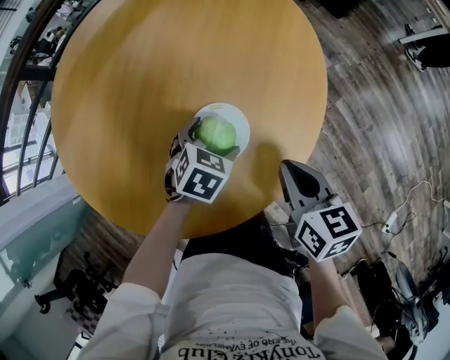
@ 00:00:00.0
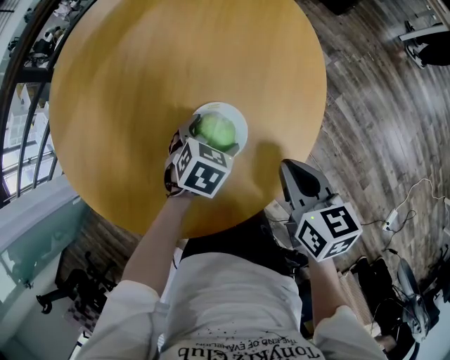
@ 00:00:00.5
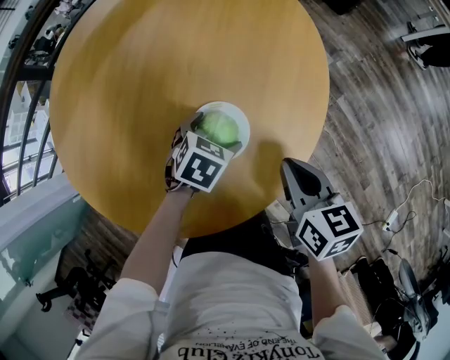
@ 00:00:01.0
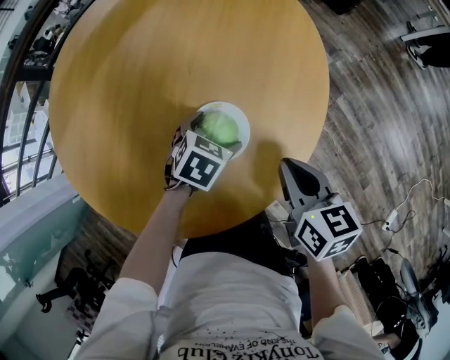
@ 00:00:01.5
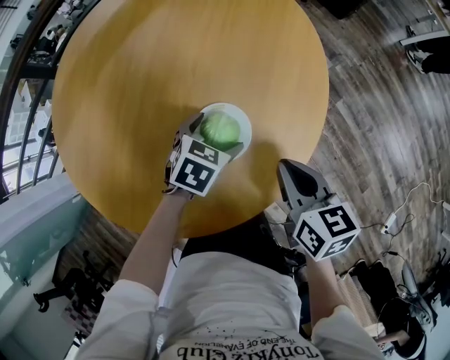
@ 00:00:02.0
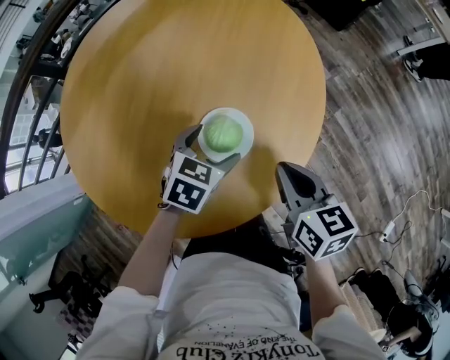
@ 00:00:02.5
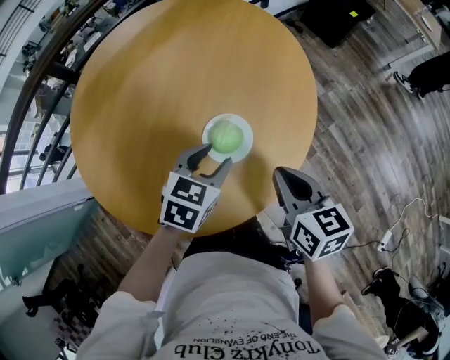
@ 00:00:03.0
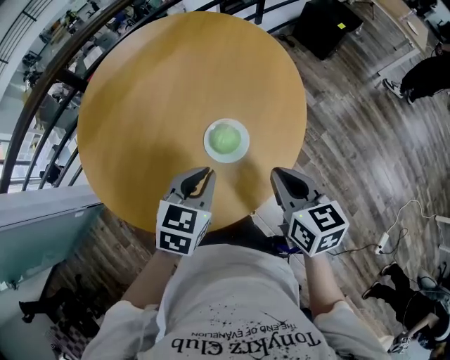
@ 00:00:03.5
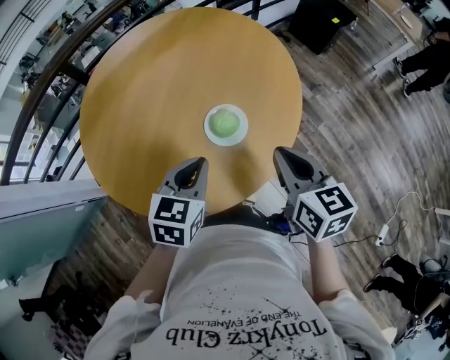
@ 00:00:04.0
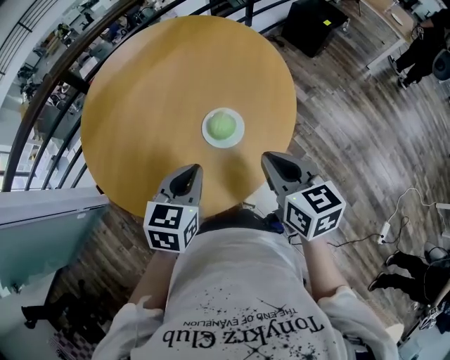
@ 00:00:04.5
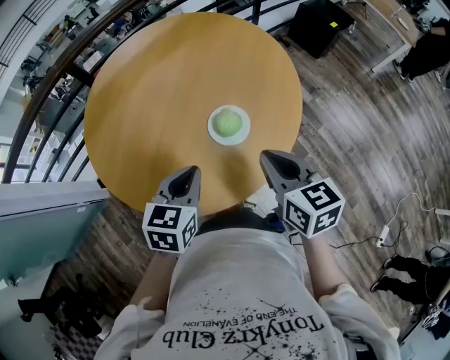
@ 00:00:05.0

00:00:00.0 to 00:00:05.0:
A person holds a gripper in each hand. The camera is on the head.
00:00:00.0 to 00:00:02.5: The left gripper goes some 5 cm upward.
00:00:02.5 to 00:00:05.0: The right gripper is displaced upward and backward by some 15 cm. The left gripper travels backward, upward and to the left by some 25 cm, turns by about 30 degrees, and closes its fingers.

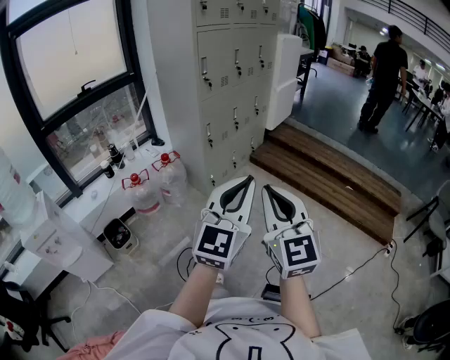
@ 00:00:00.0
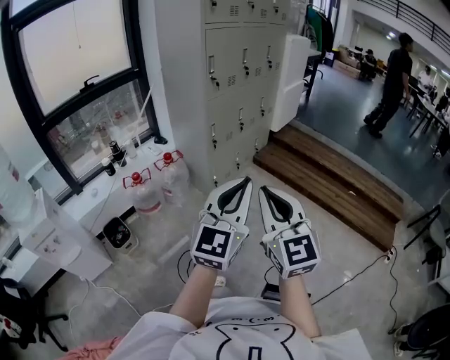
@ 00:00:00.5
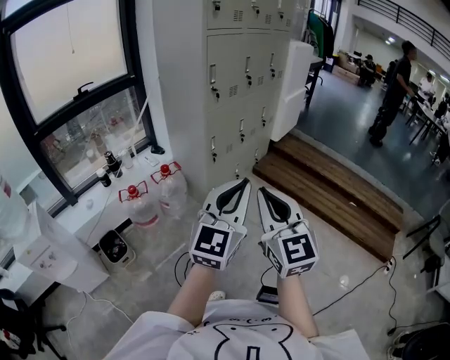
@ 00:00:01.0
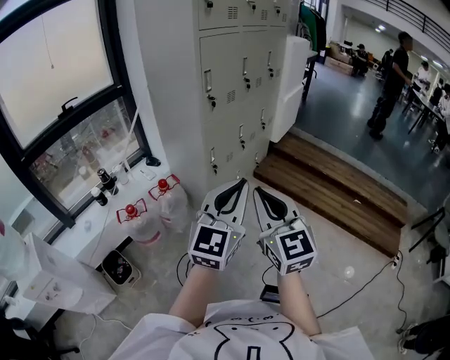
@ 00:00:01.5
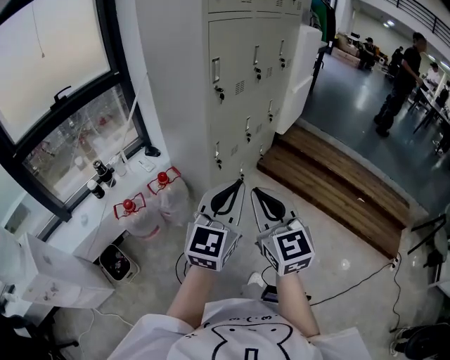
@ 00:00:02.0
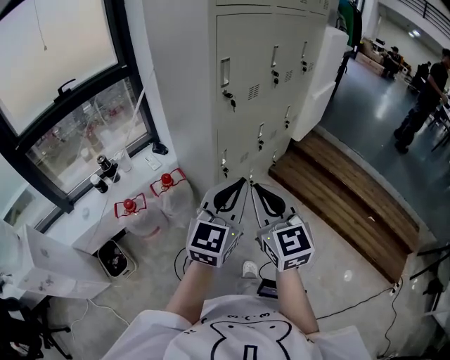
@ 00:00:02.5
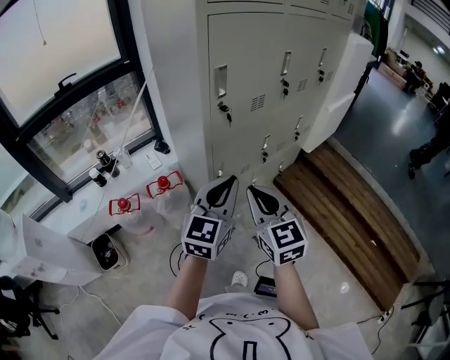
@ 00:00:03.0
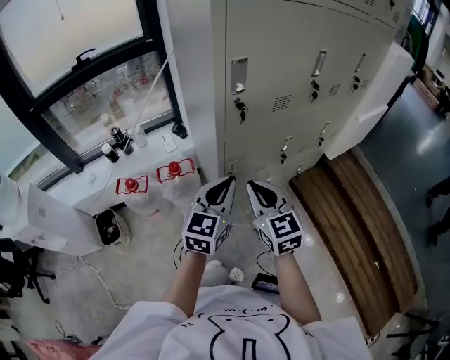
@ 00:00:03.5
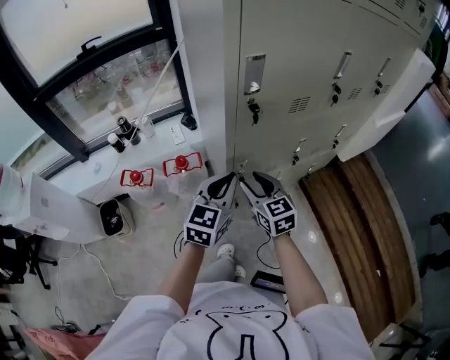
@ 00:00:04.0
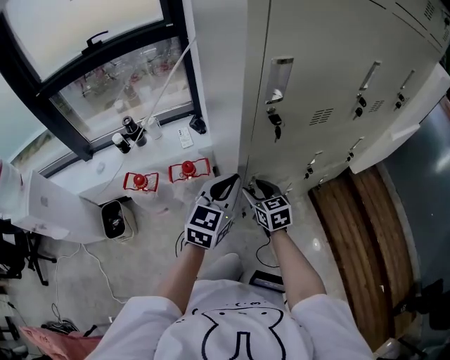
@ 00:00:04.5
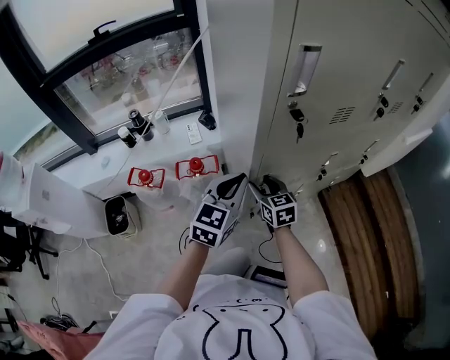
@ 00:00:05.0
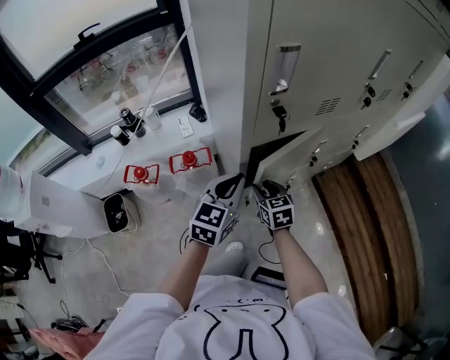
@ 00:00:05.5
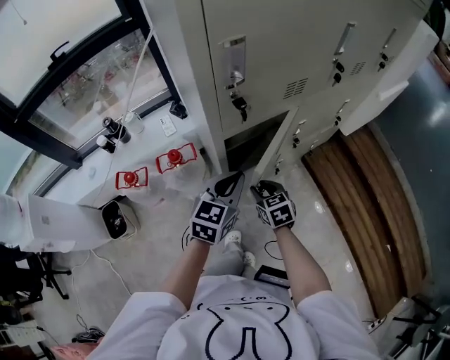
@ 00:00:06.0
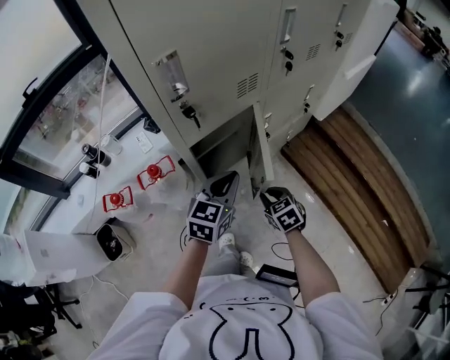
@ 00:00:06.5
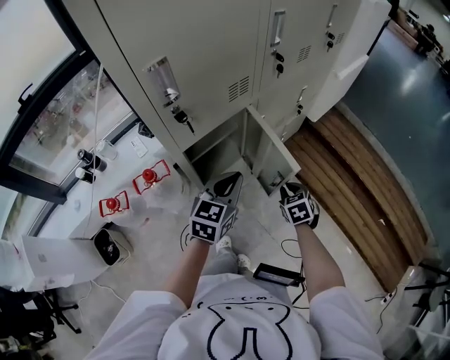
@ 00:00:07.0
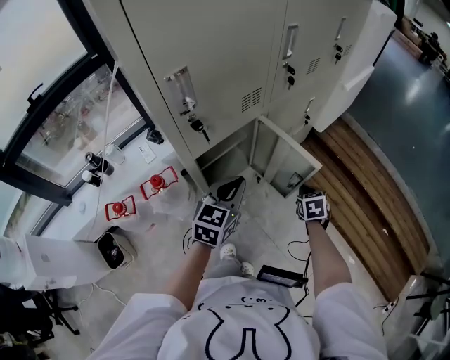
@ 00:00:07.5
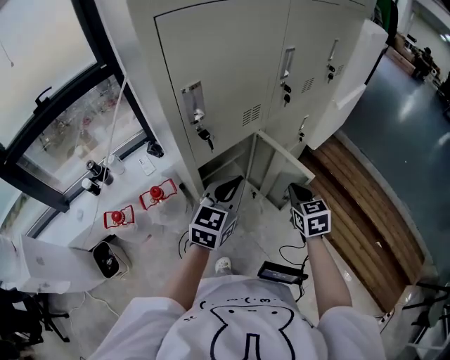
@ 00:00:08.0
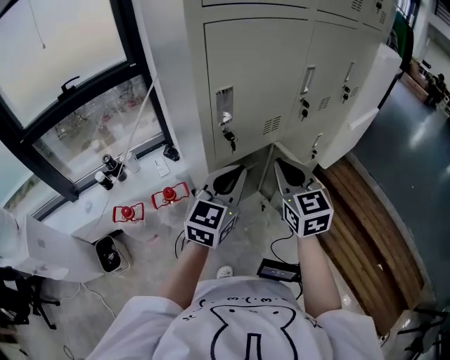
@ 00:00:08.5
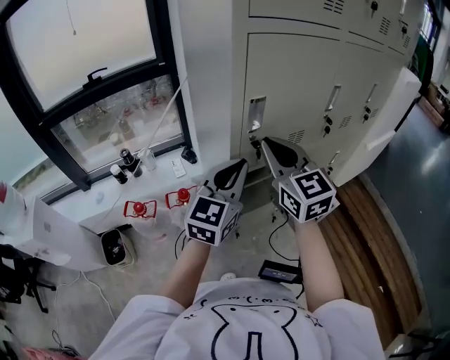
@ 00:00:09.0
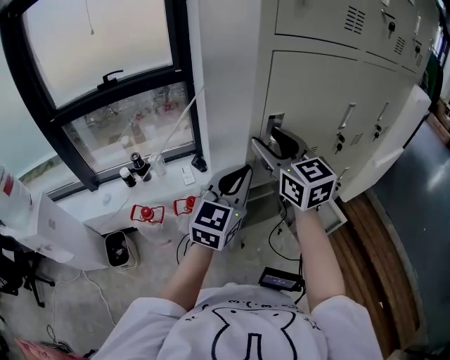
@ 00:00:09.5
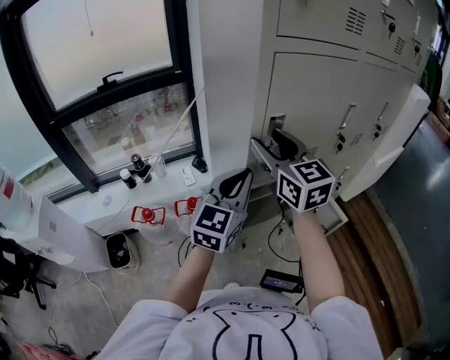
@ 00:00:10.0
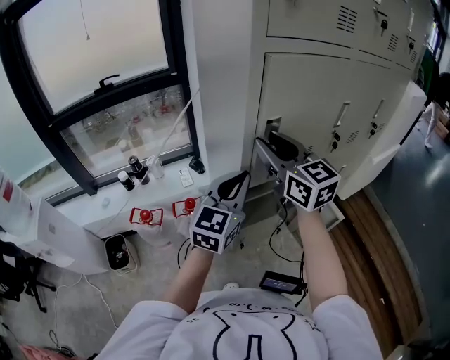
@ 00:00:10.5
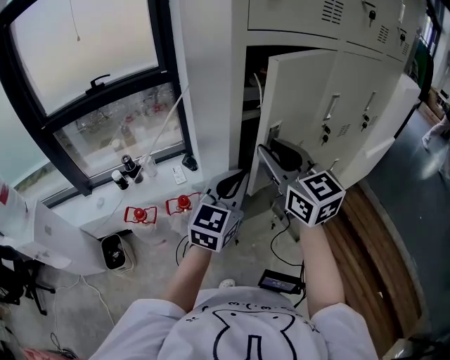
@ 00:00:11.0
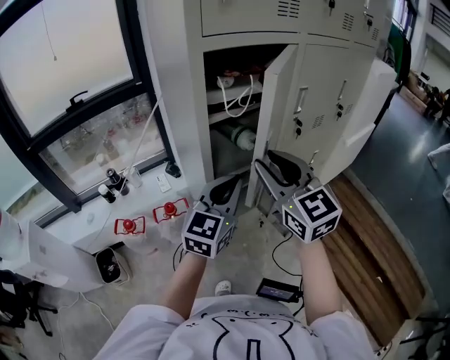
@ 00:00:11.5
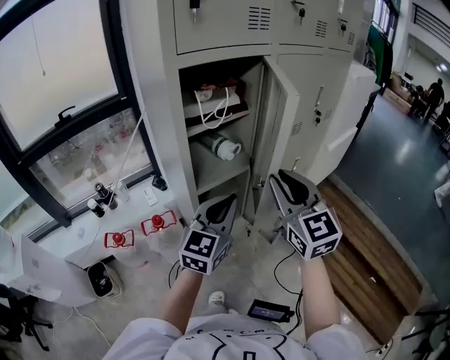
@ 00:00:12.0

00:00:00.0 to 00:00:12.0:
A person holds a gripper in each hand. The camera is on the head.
00:00:00.0 to 00:00:02.0: Both grippers move forward and to the left, approximately 35 cm.
00:00:02.0 to 00:00:04.0: The right gripper ends up about 40 cm from where it was, rotates roughly 40 degrees, and opens up. The left gripper ends up roughly 35 cm from where it was, and turns by roughly 30 degrees.
00:00:04.0 to 00:00:06.0: The left gripper heads downward, covering roughly 5 cm, while the right gripper travels downward by roughly 15 cm, and swivels some 20 degrees.
00:00:06.0 to 00:00:08.0: The right gripper moves to the right and upward, about 25 cm, turns by approximately 20 degrees, and closes its fingers. The left gripper is displaced upward and to the right by some 10 cm.
00:00:08.0 to 00:00:10.0: The left gripper is displaced to the left and upward by approximately 20 cm, and swivels roughly 20 degrees. The right gripper shifts about 40 cm to the left and upward, tips its fingers upward by some 30 degrees, and opens.
00:00:10.0 to 00:00:12.0: The right gripper moves to the right and backward, some 25 cm, changes its angle by some 20 degrees, and closes. Meanwhile the left gripper moves to the right and backward, some 15 cm.

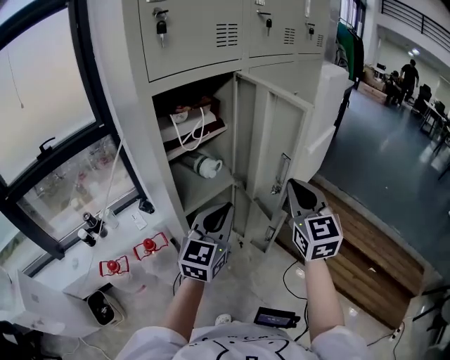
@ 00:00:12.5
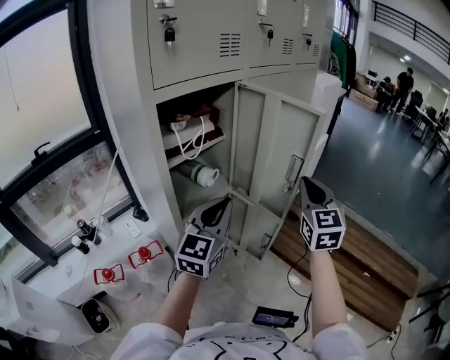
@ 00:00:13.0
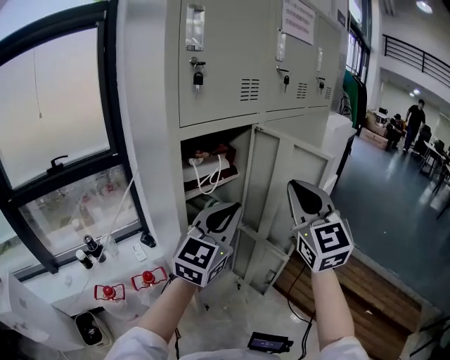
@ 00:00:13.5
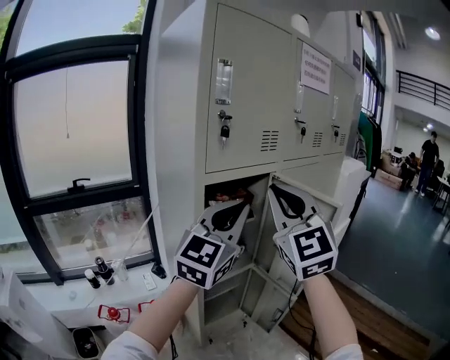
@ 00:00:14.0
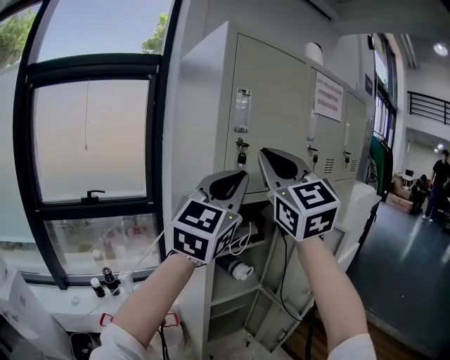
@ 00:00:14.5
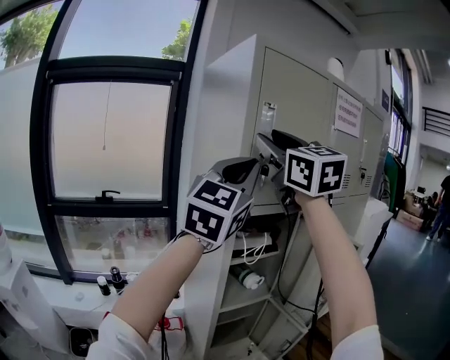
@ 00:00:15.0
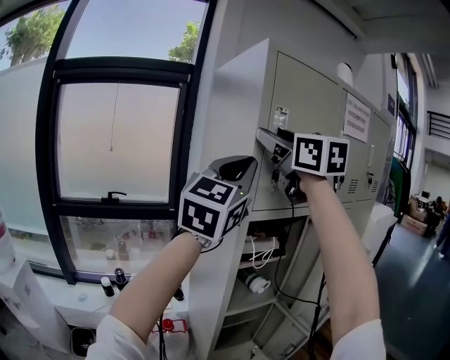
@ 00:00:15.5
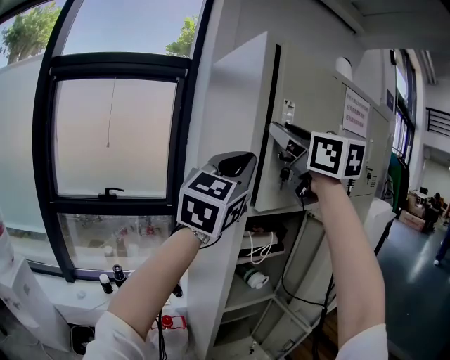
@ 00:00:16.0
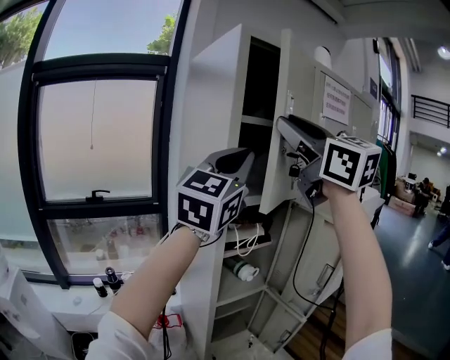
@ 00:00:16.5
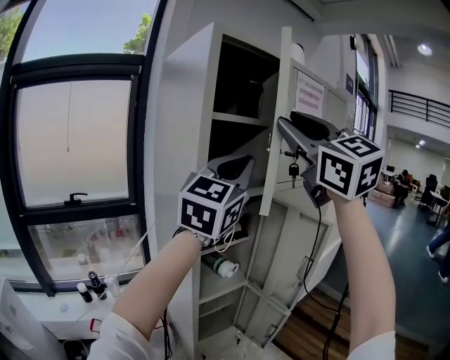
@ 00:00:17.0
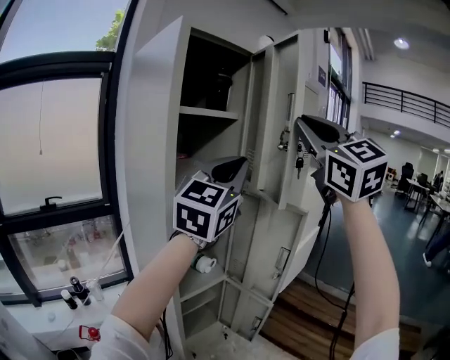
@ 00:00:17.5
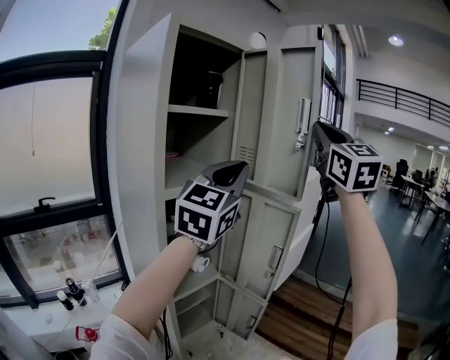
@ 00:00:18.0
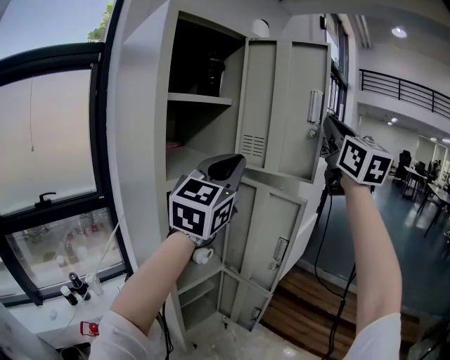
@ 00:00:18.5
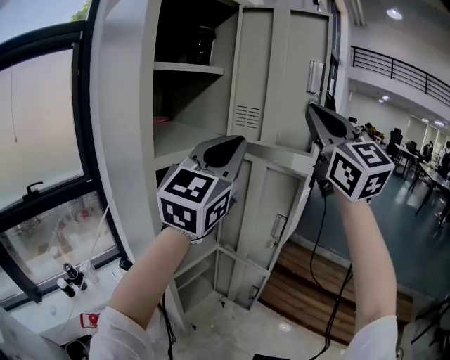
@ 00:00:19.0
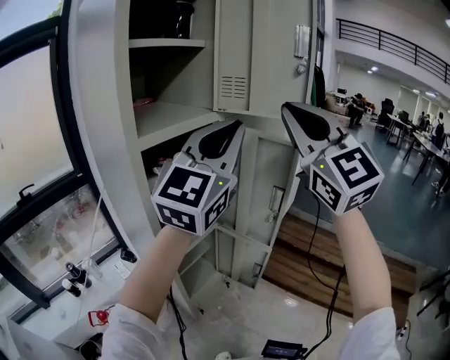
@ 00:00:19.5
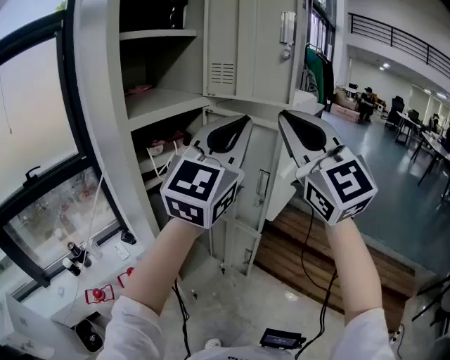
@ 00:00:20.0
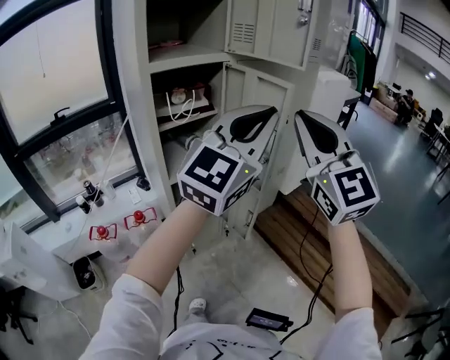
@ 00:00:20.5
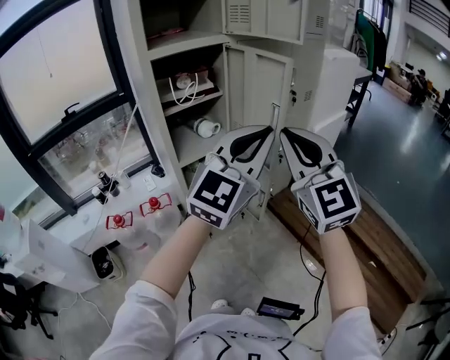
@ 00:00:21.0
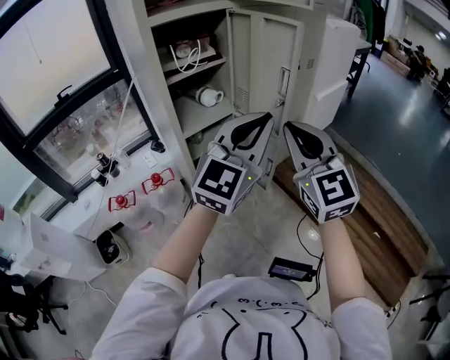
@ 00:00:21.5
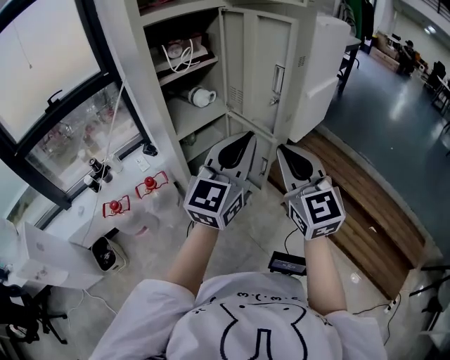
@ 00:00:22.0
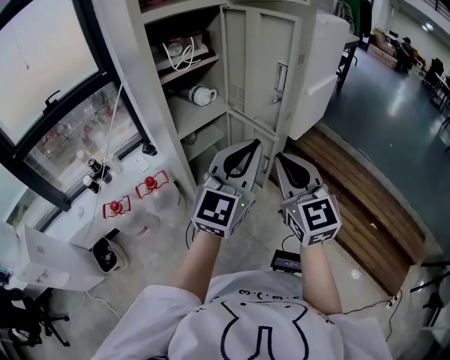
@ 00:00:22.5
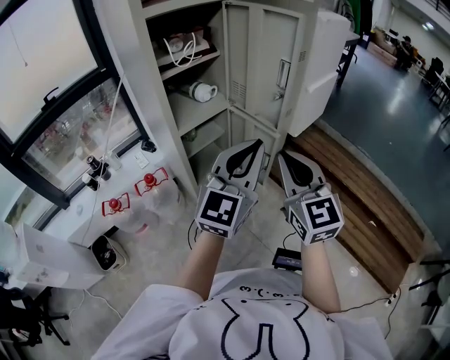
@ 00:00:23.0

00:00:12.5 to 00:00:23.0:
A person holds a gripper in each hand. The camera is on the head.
00:00:12.5 to 00:00:14.5: The right gripper shifts some 40 cm upward and to the left, and swivels approximately 40 degrees; the left gripper moves upward, some 35 cm, and rotates approximately 30 degrees.
00:00:14.5 to 00:00:16.5: The right gripper goes roughly 10 cm upward, moves some 5 cm forward and comes back, and opens up.
00:00:16.5 to 00:00:19.0: The left gripper ends up some 15 cm from where it was, and rotates roughly 20 degrees. Meanwhile the right gripper moves about 20 cm, changes its angle by some 40 degrees, and closes its fingers.
00:00:19.0 to 00:00:21.0: The left gripper travels downward, to the right and backward by approximately 25 cm. Meanwhile the right gripper heads downward and backward, covering roughly 30 cm.
00:00:21.0 to 00:00:23.0: The right gripper shifts about 15 cm downward, and swivels approximately 20 degrees, while the left gripper goes about 15 cm downward and to the left.
